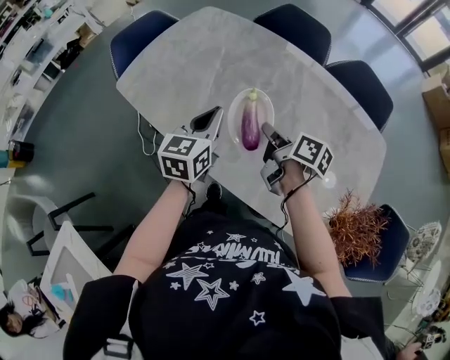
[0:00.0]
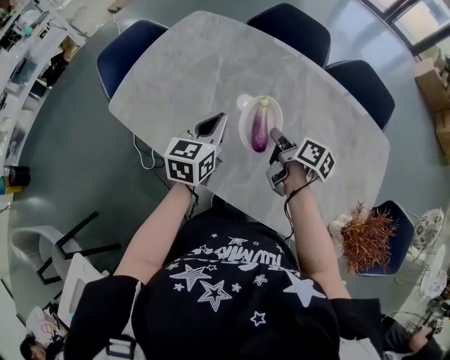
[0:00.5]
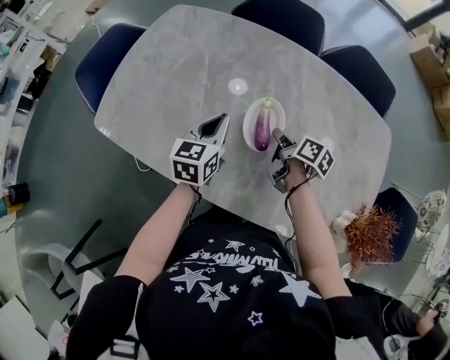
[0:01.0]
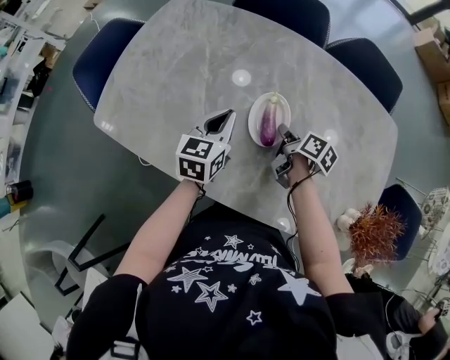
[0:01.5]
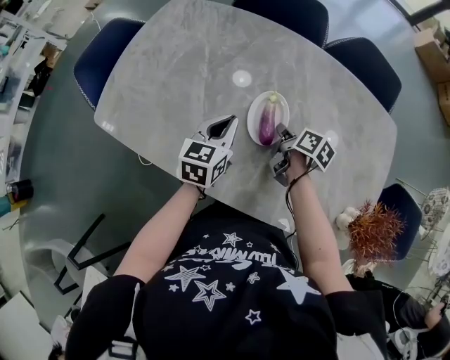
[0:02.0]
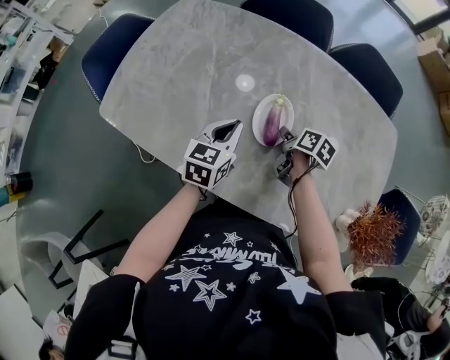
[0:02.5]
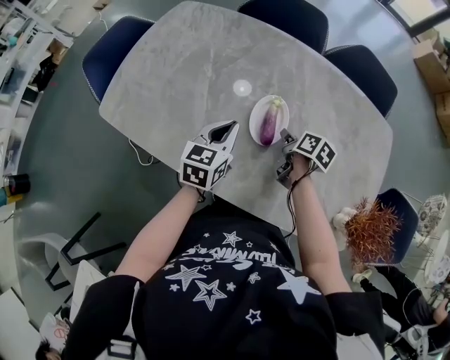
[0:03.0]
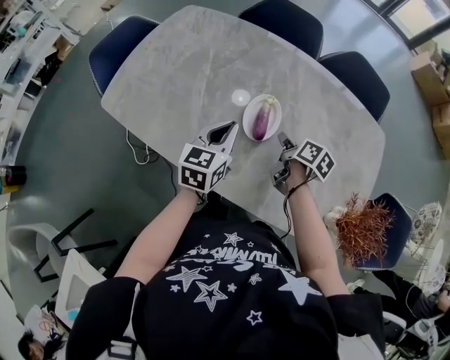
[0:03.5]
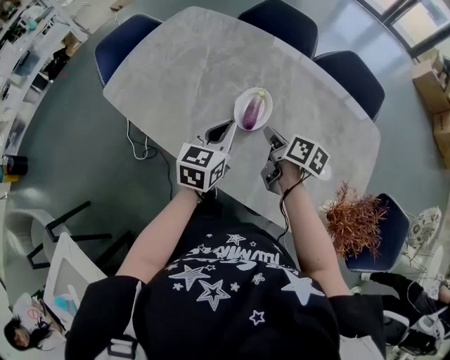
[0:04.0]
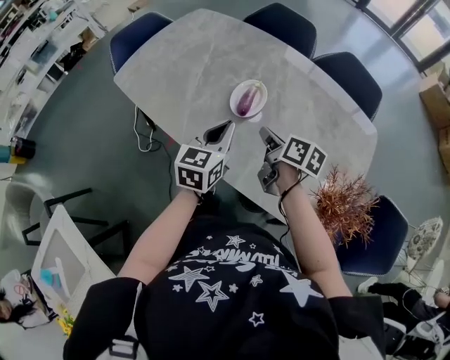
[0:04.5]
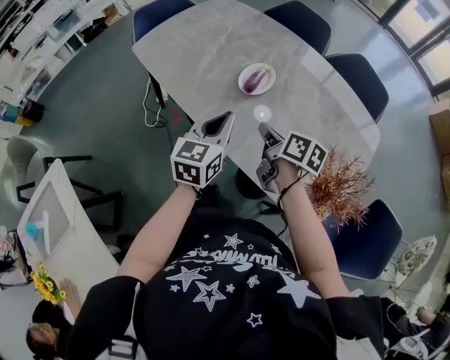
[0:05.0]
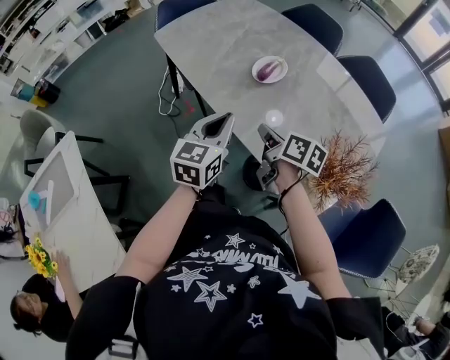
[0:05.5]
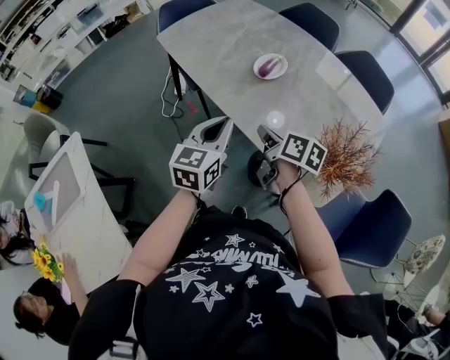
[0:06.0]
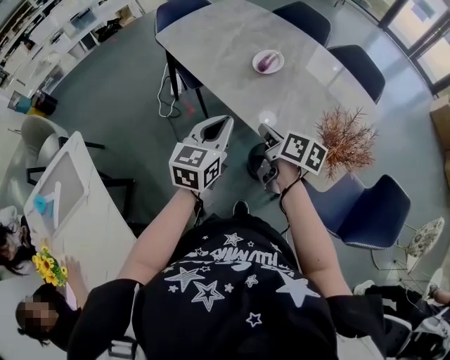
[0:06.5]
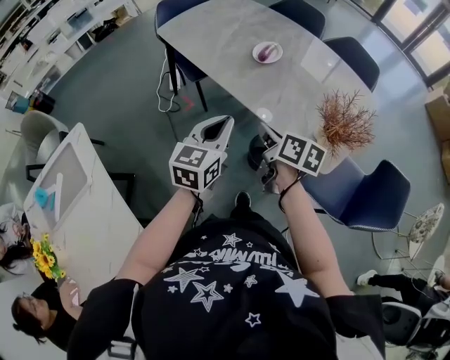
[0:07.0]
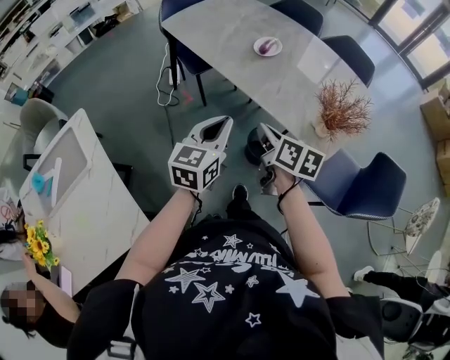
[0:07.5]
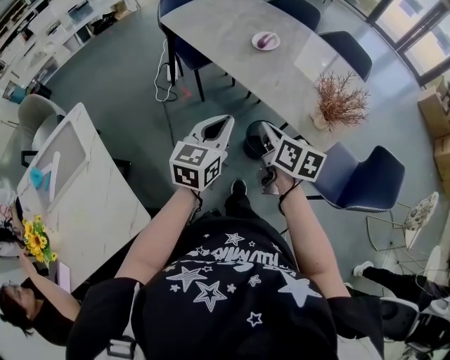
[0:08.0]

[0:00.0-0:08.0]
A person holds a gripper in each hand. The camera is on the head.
0:00.0 to 0:02.0: Both grippers move downward and forward, roughly 15 cm. The right gripper turns by about 30 degrees.
0:02.0 to 0:04.0: The left gripper shifts roughly 15 cm backward, upward and to the right; the right gripper goes about 10 cm upward and backward.
0:04.0 to 0:06.0: The grippers both shift backward by roughly 30 cm. The right gripper turns by some 20 degrees.
0:06.0 to 0:08.0: The two grippers go approximately 20 cm backward.

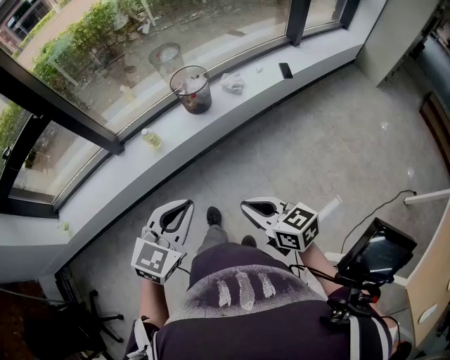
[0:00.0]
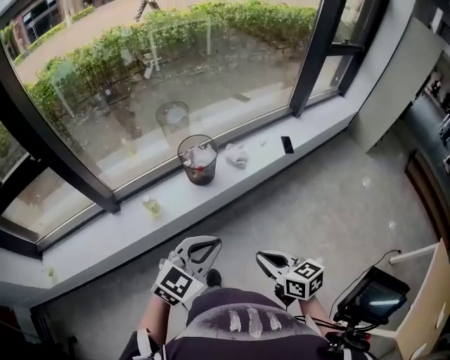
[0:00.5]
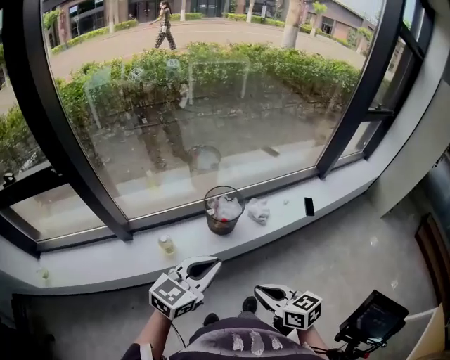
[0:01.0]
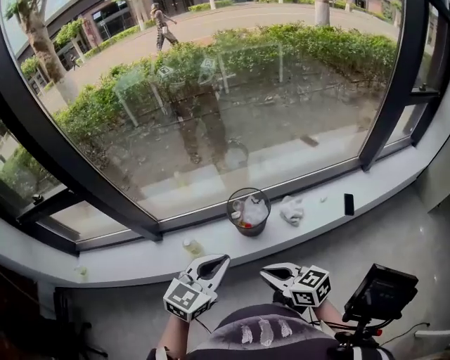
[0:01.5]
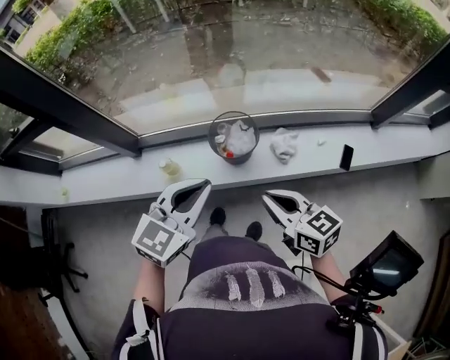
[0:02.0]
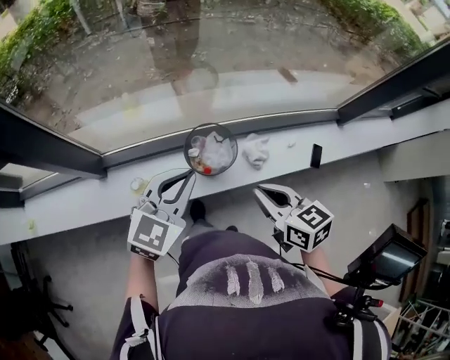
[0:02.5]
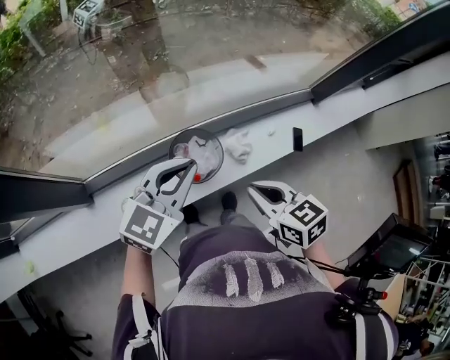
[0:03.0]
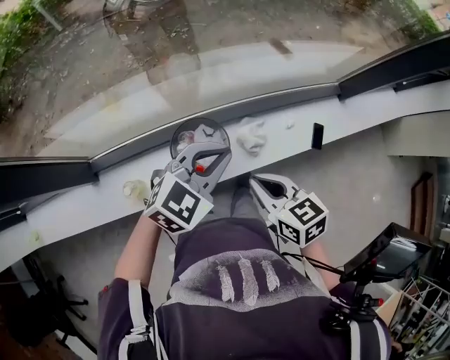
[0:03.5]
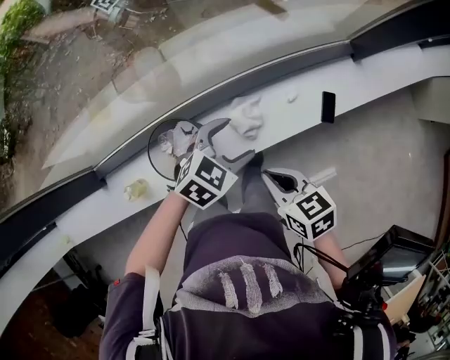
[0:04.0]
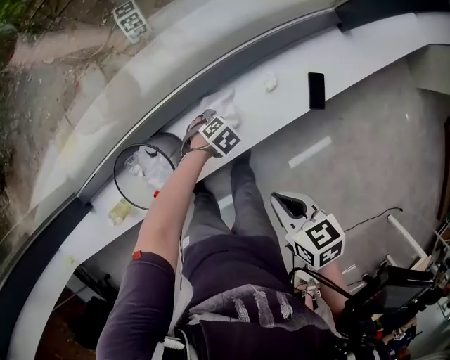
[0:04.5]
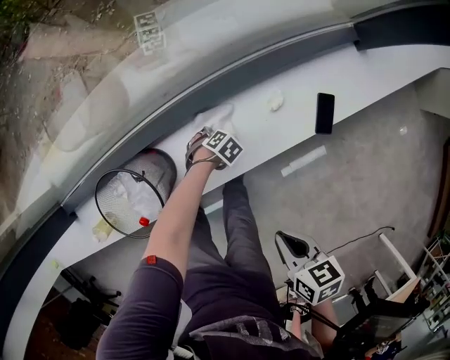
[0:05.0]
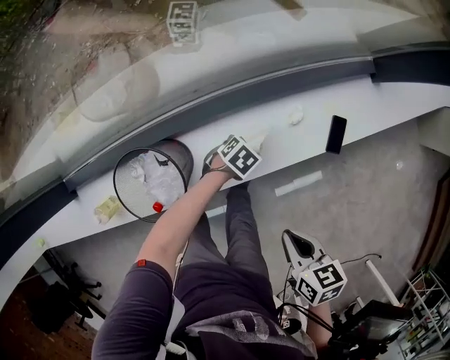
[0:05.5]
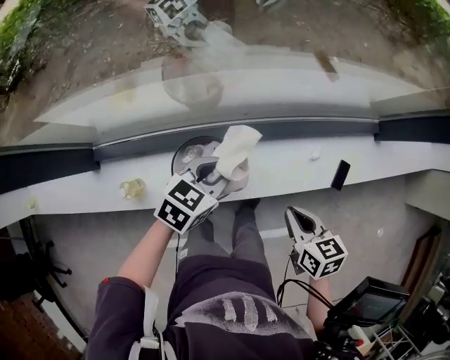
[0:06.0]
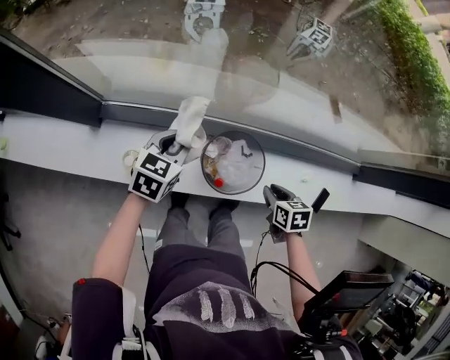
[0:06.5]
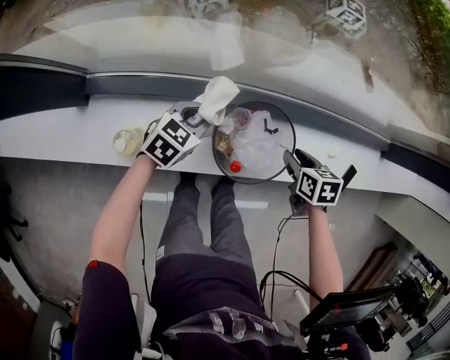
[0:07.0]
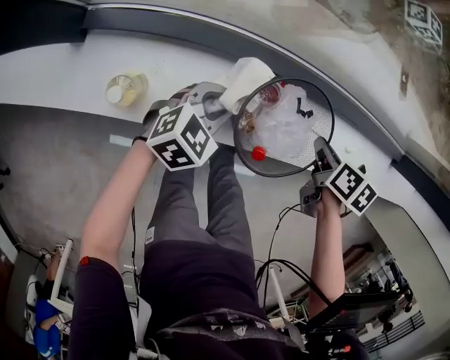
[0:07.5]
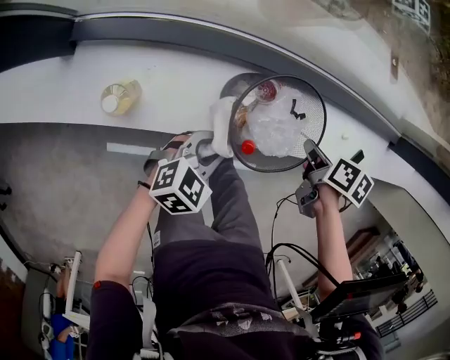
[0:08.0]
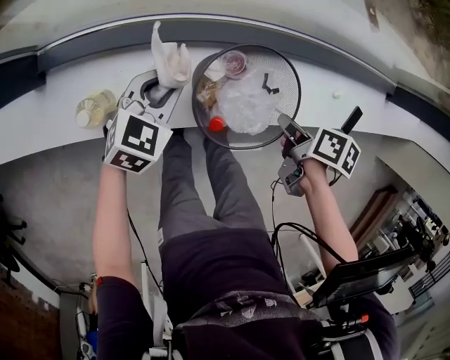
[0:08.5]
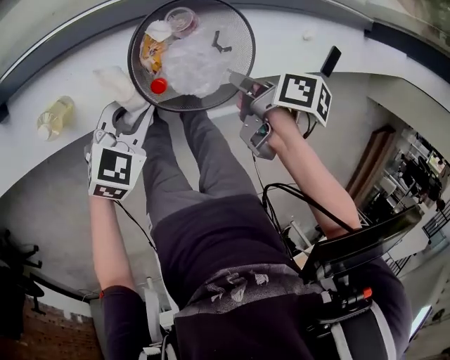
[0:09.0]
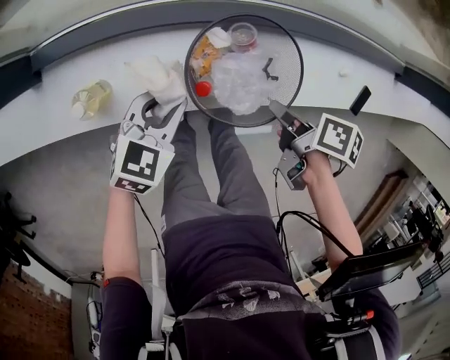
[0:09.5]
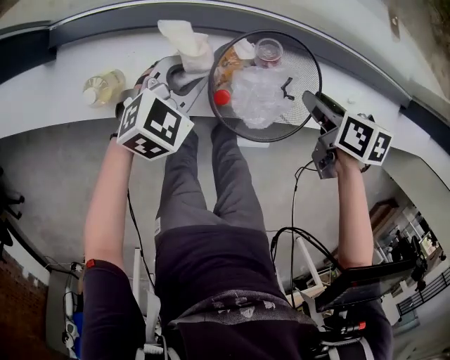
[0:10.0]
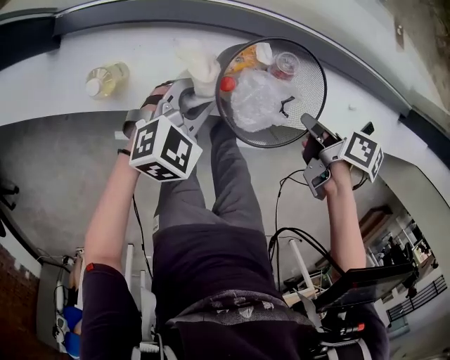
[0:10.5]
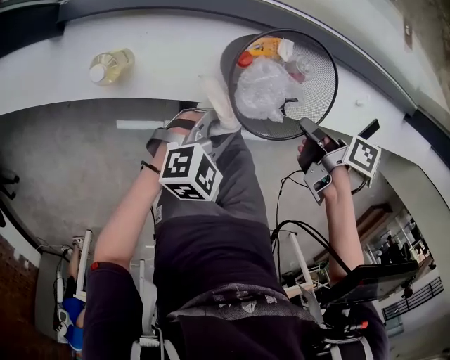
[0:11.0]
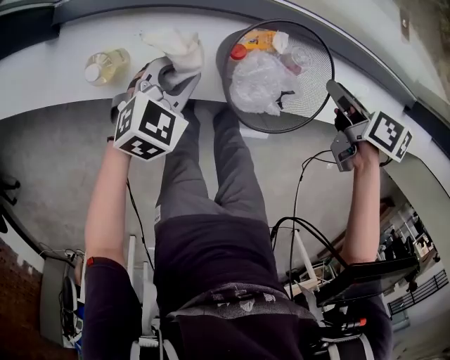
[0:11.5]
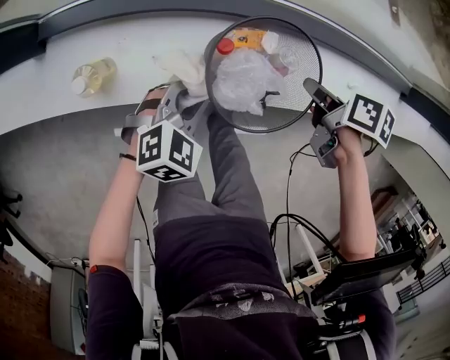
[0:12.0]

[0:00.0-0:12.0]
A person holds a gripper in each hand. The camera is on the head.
0:00.0 to 0:02.0: The pair of grippers is taken about 40 cm.
0:02.0 to 0:04.0: The left gripper shifts about 40 cm forward, to the right and downward, changes its angle by about 40 degrees, and opens. The right gripper heads forward, downward and to the right, covering about 25 cm, and rotates some 30 degrees.
0:04.0 to 0:06.0: The left gripper goes downward and returns, roughly 40 cm each way, rotates about 30 degrees, and closes up. Meanwhile the right gripper reaches roughly 10 cm downward, then returns.
0:06.0 to 0:08.0: The right gripper moves downward and to the left, about 20 cm, changes its angle by approximately 40 degrees, and opens, then closes once more, while the left gripper goes about 30 cm downward, backward and to the left.
0:08.0 to 0:10.0: The left gripper moves forward and backward over approximately 10 cm, changing direction 2 times; the right gripper goes backward and returns, about 5 cm each way, changes its angle by about 20 degrees, and opens.
0:10.0 to 0:12.0: The right gripper closes its fingers.

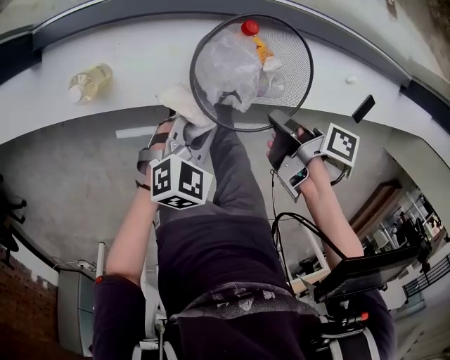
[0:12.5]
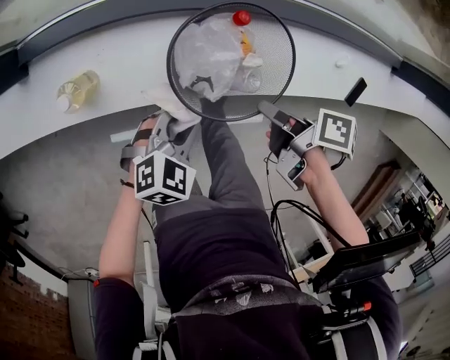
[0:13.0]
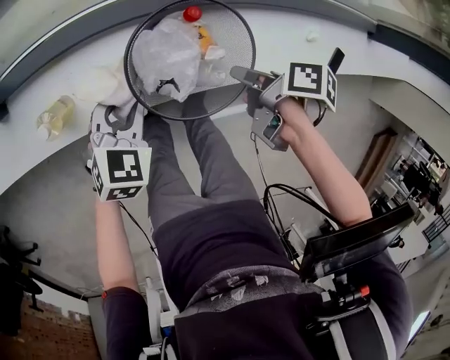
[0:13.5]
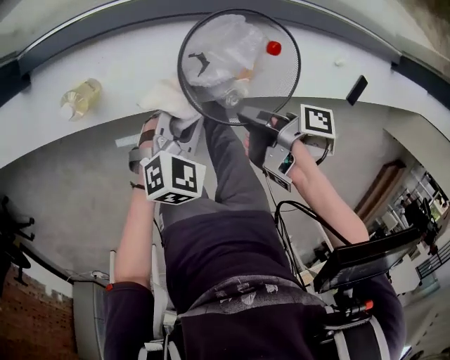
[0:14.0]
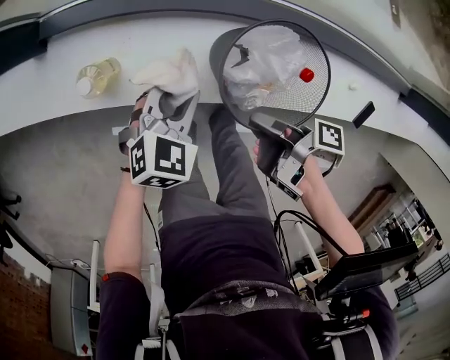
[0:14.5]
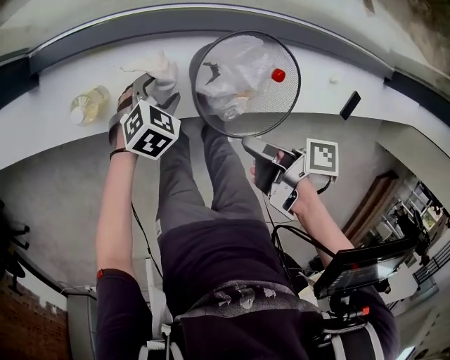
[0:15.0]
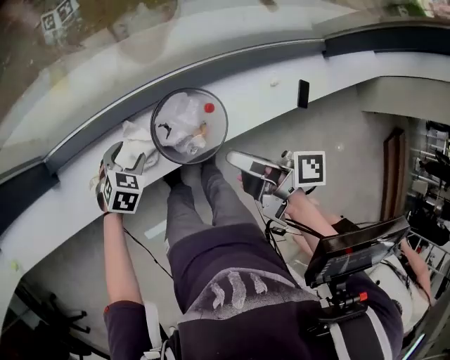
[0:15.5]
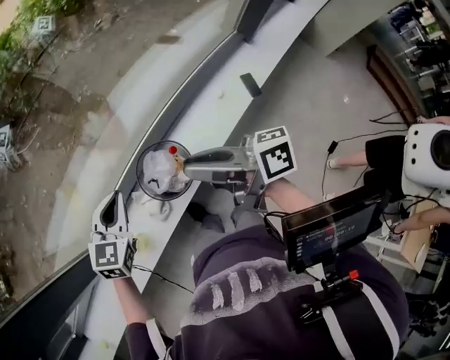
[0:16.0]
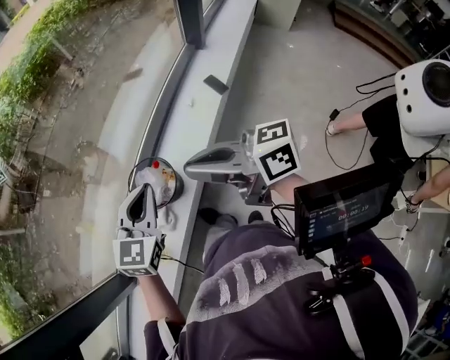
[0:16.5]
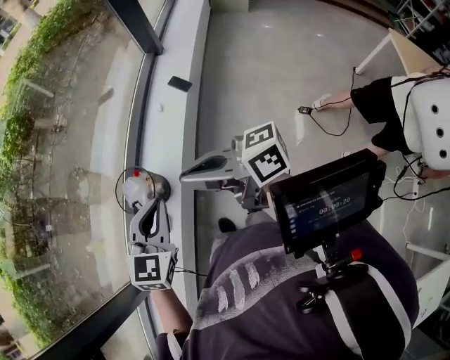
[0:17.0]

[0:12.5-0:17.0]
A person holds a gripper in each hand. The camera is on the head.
0:12.5 to 0:14.5: The left gripper swings forward and backward, roughly 10 cm each way, with 2 reversals. The right gripper moves to the left, roughly 5 cm.
0:14.5 to 0:17.0: The right gripper goes about 40 cm upward, and rolls counterclockwise, seen from behind, by approximately 70 degrees. The left gripper swings up and down, approximately 40 cm each way, with 2 reversals, turns by roughly 40 degrees, and opens, then closes once more.

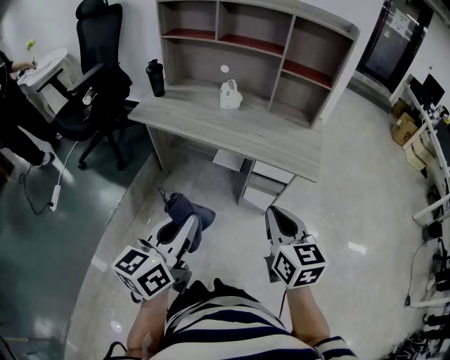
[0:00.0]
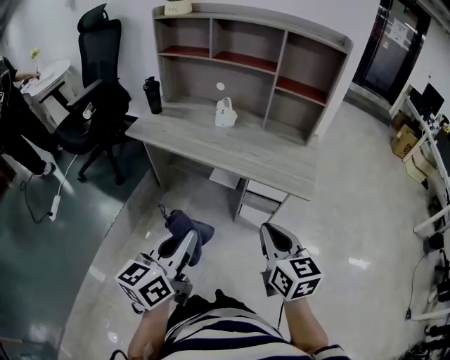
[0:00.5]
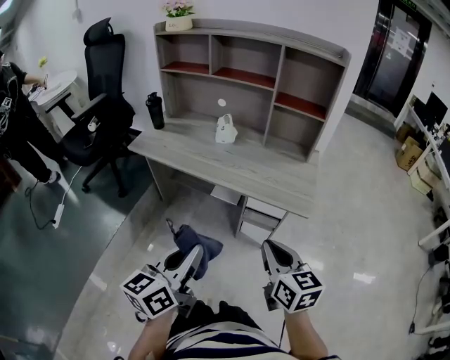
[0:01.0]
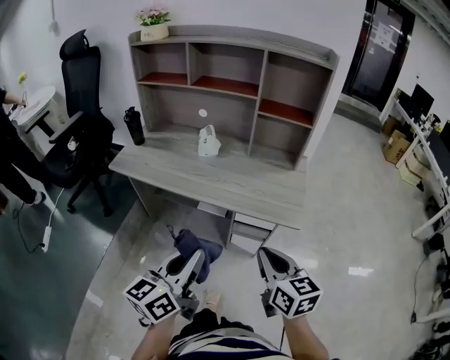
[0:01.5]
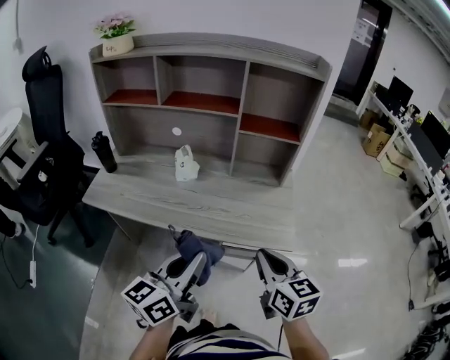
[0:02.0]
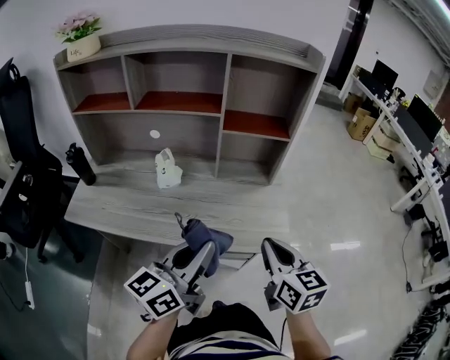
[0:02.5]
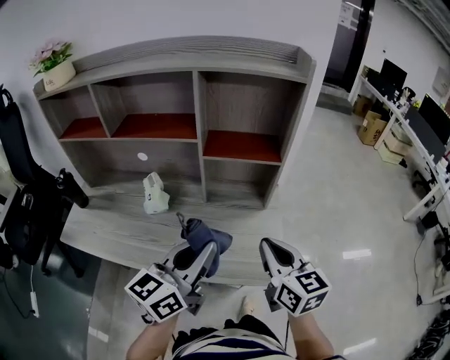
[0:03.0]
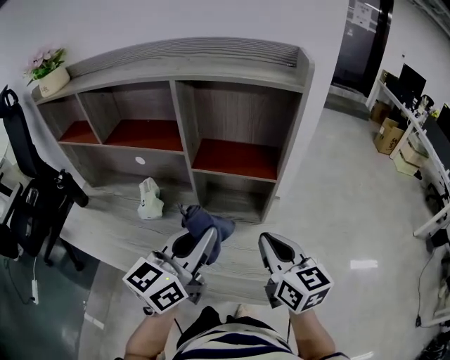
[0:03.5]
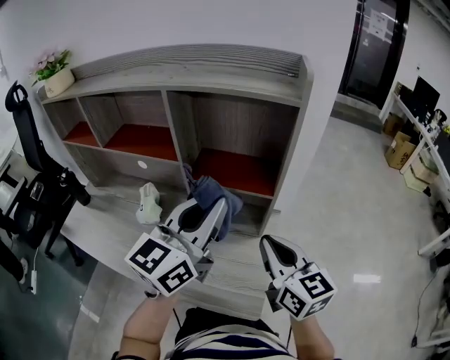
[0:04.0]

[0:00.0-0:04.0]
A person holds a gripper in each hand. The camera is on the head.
0:00.0 to 0:02.0: The left gripper travels forward and to the right by approximately 25 cm, while the right gripper moves forward, some 15 cm.
0:02.0 to 0:04.0: The grippers both shift forward and to the right by approximately 35 cm. The left gripper changes its angle by some 20 degrees.
